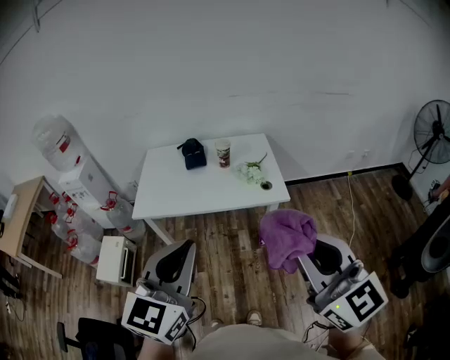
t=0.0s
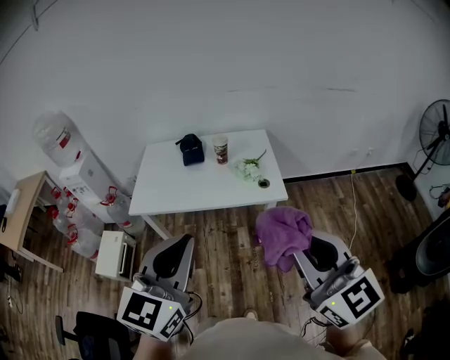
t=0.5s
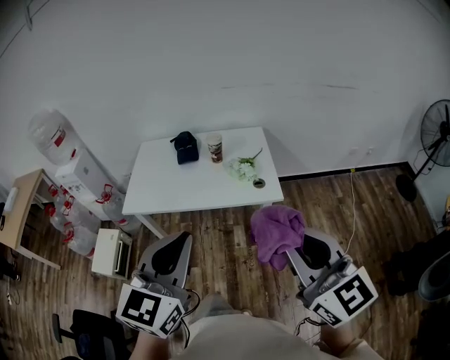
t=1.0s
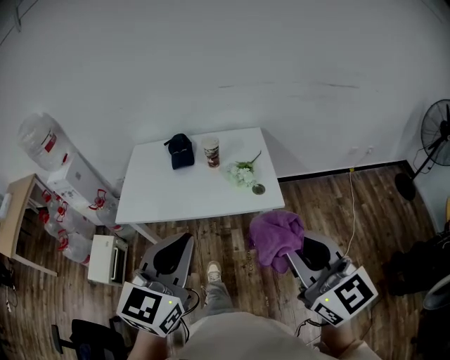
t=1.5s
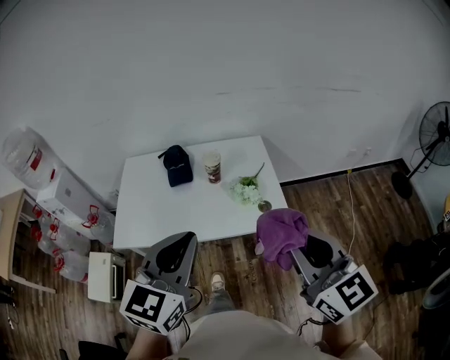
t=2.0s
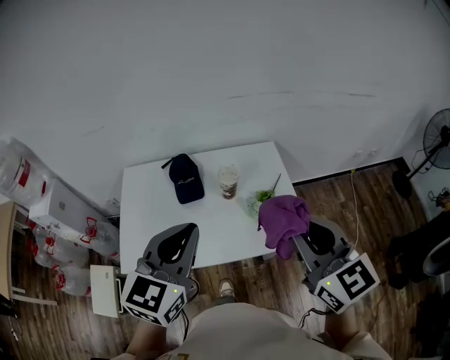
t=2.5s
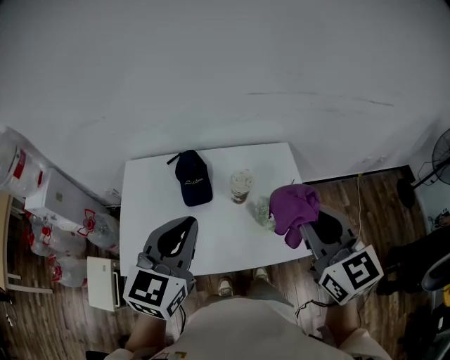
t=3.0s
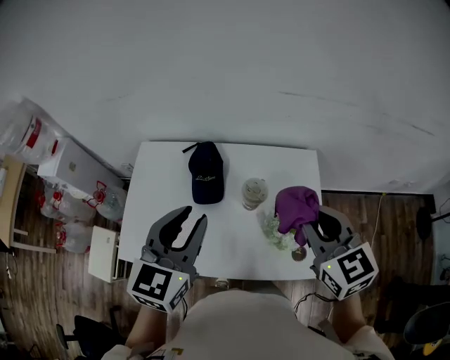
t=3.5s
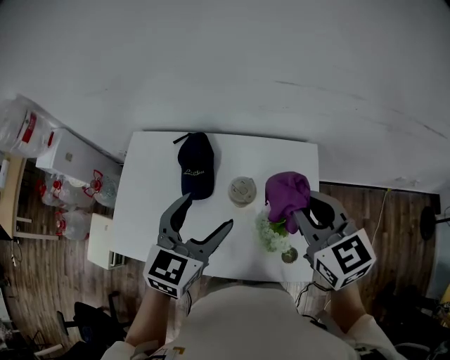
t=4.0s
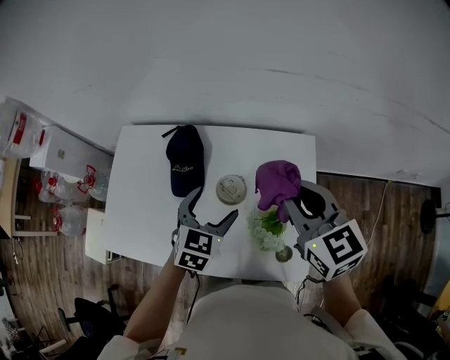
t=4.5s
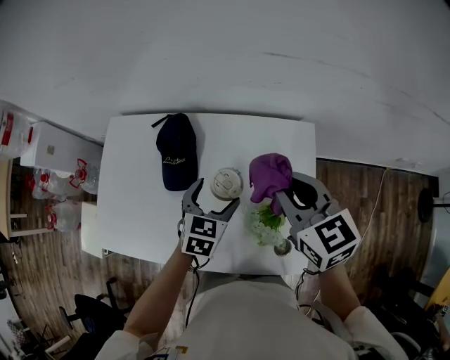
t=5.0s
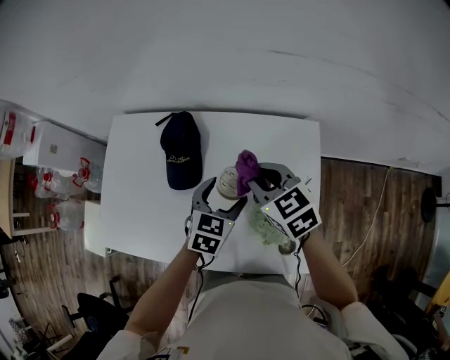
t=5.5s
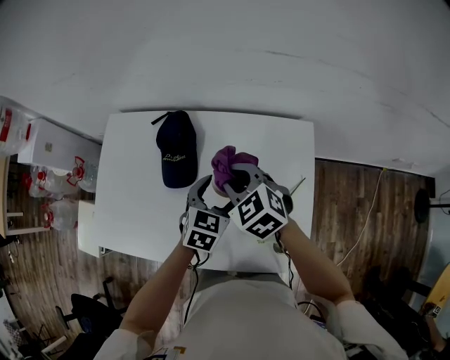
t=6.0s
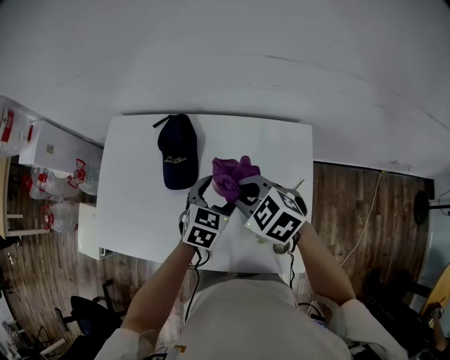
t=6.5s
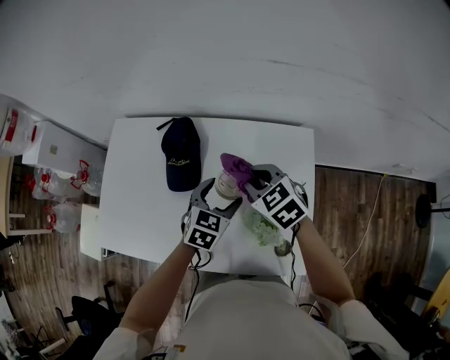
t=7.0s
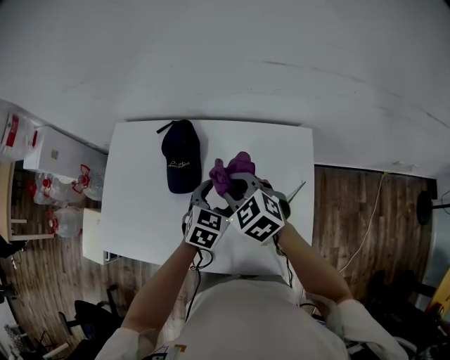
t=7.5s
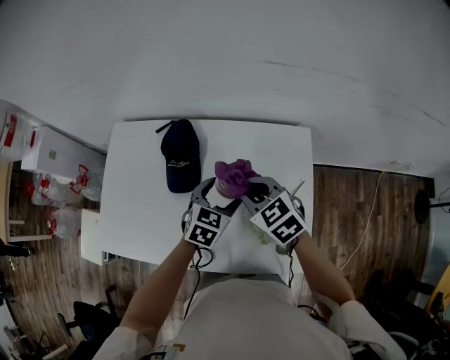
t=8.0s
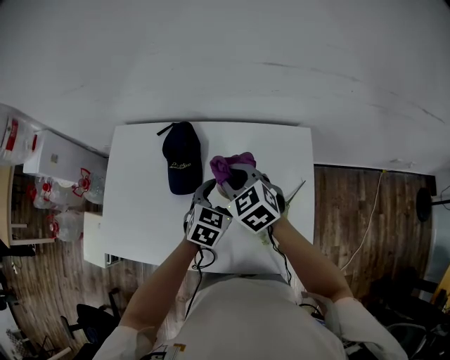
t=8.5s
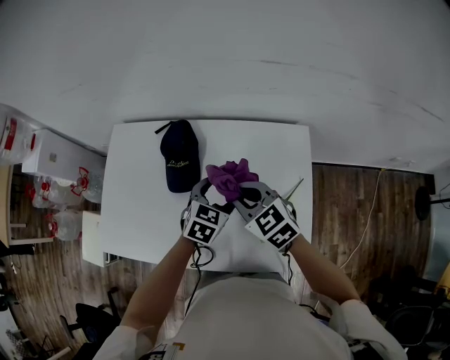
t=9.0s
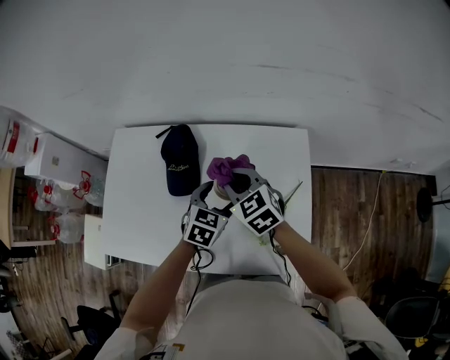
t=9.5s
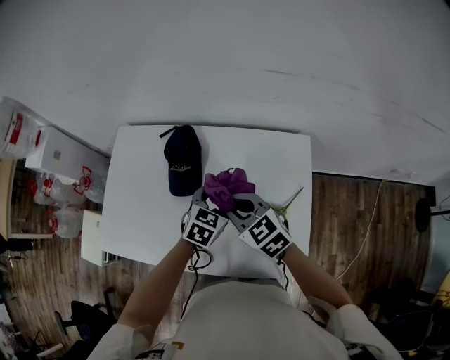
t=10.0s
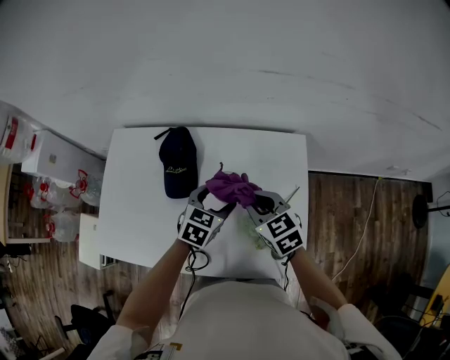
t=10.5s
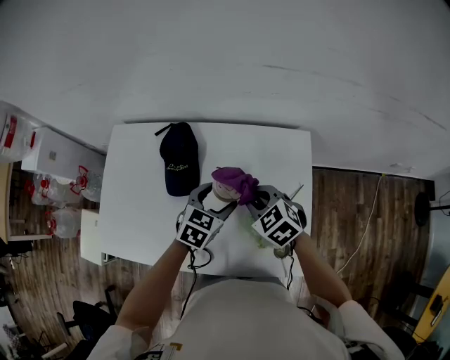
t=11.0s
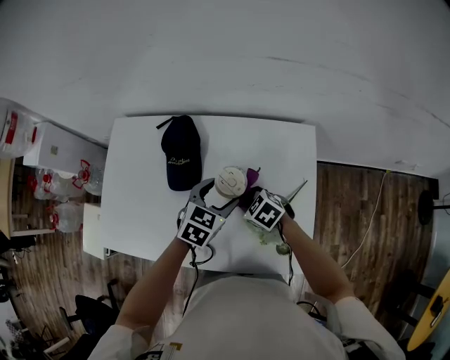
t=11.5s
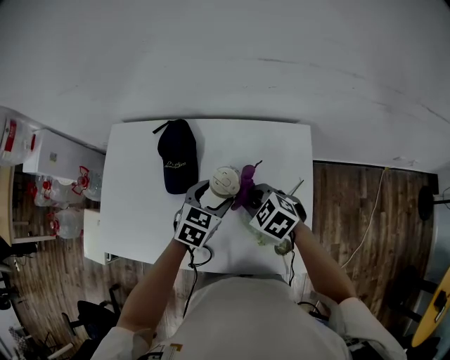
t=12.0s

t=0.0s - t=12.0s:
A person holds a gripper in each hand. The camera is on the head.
t=0.0s - t=2.0s: The two grippers go about 25 cm forward.
t=2.0s - t=4.0s: Both grippers move forward, approximately 40 cm. The right gripper turns by roughly 20 degrees. Meanwhile the left gripper opens.
t=4.0s - t=6.0s: The left gripper moves downward, some 20 cm; the right gripper goes some 20 cm downward, to the left and forward, and changes its angle by some 30 degrees.
t=6.0s - t=8.0s: The right gripper swings left and right, about 5 cm each way, with 2 reversals.
t=8.0s - t=10.0s: The right gripper moves forward and backward over about 10 cm, changing direction 3 times.
t=10.0s - t=12.0s: The right gripper heads downward and to the right, covering approximately 10 cm, and rotates about 20 degrees.

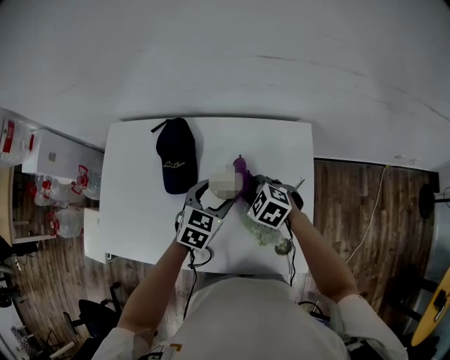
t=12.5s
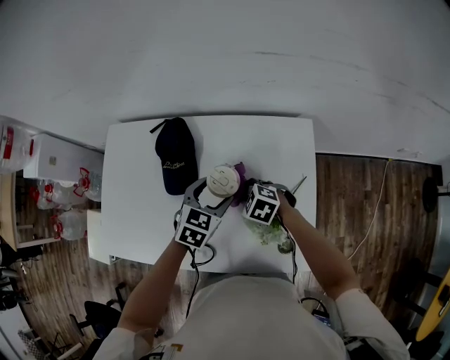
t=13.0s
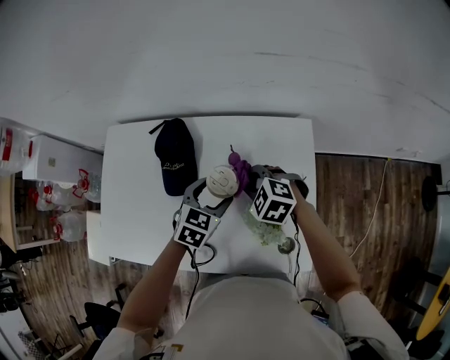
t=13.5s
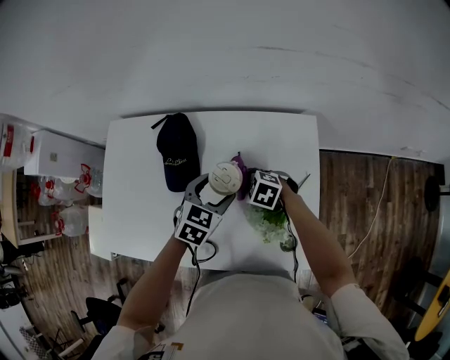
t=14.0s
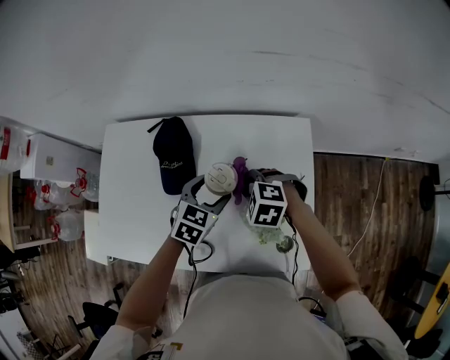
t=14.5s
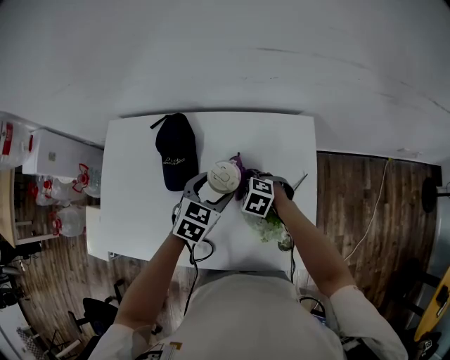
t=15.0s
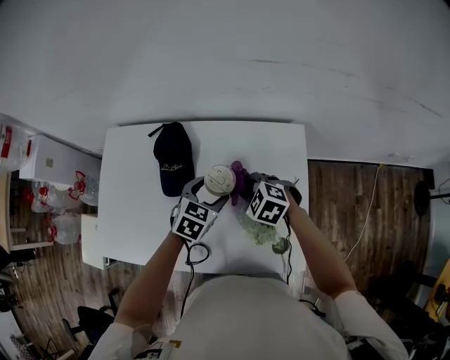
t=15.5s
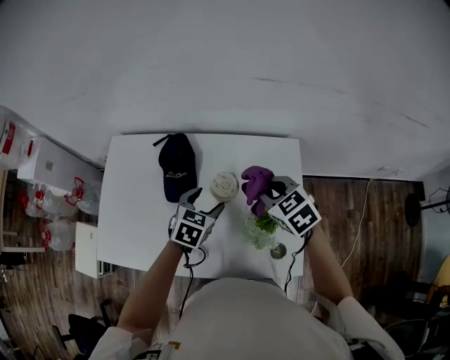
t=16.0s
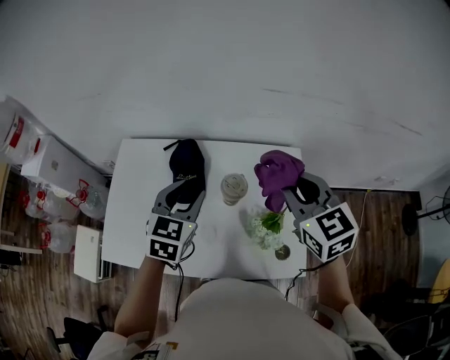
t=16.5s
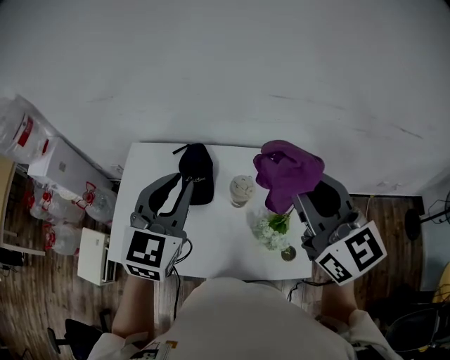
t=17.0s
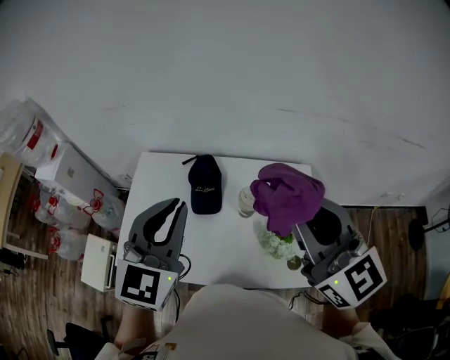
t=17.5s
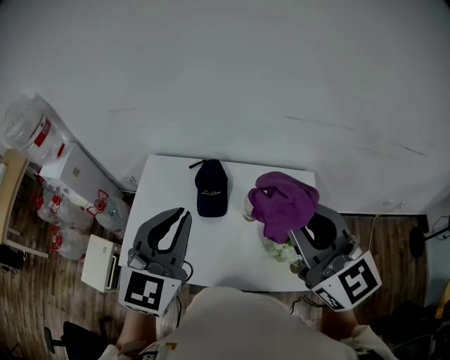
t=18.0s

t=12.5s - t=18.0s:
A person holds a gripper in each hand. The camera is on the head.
t=12.5s - t=14.5s: The right gripper swings up and down, approximately 10 cm each way, with 3 reversals.
t=14.5s - t=16.0s: The right gripper shifts some 10 cm upward, and changes its angle by roughly 40 degrees.
t=16.0s - t=18.0s: The right gripper goes some 35 cm upward and backward, and tips its fingers upward by about 50 degrees, while the left gripper heads upward and to the left, covering roughly 35 cm, angles its fingers upward, by approximately 40 degrees, and closes its fingers.

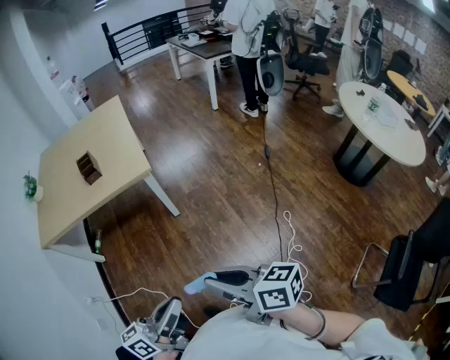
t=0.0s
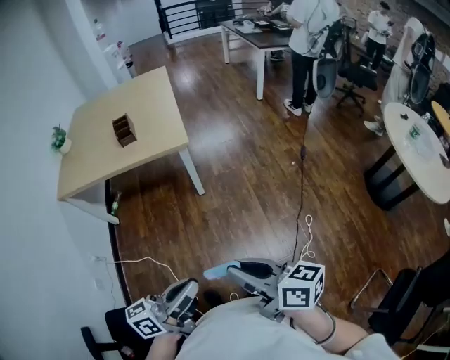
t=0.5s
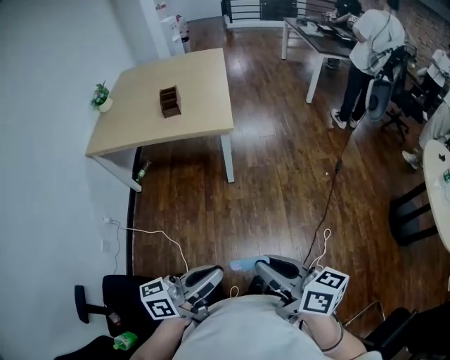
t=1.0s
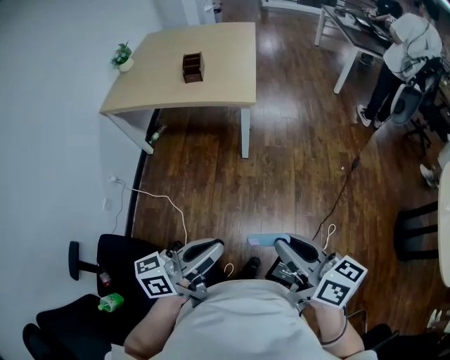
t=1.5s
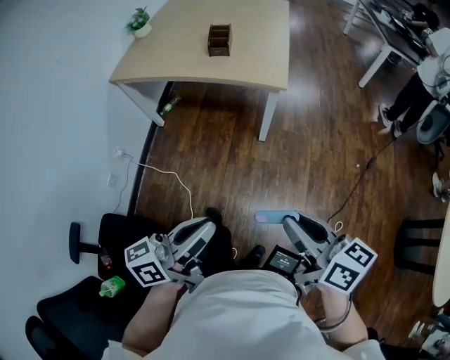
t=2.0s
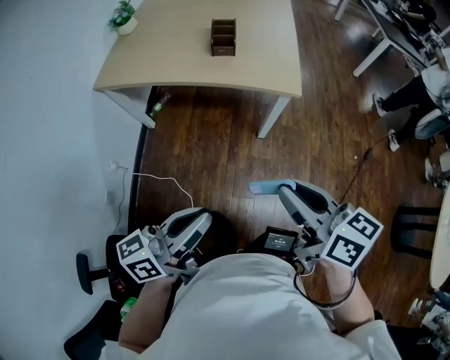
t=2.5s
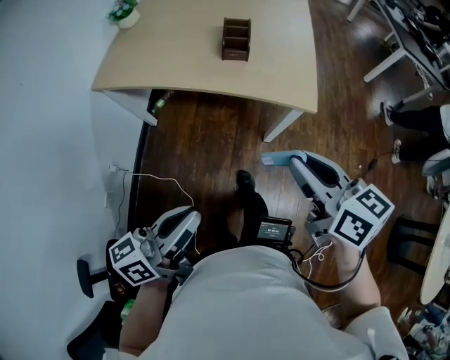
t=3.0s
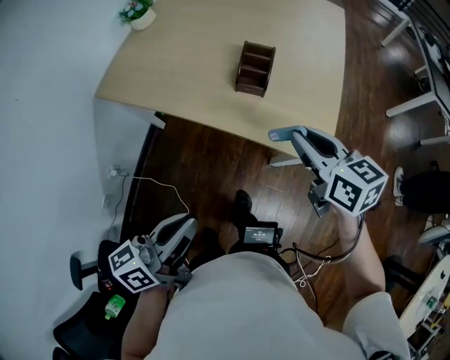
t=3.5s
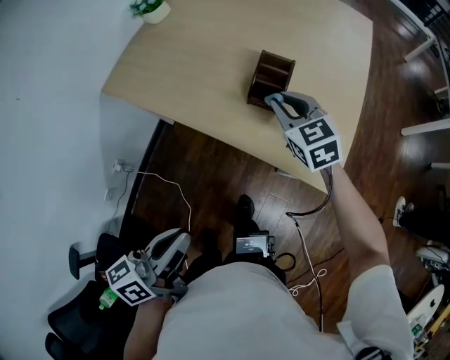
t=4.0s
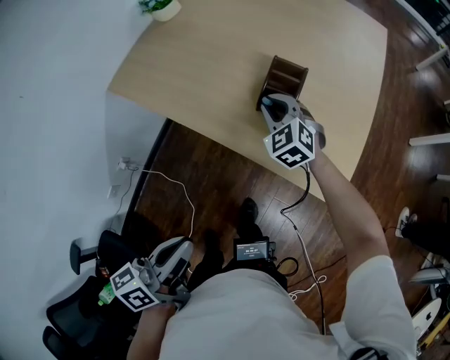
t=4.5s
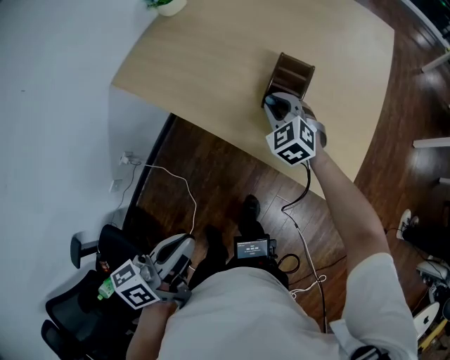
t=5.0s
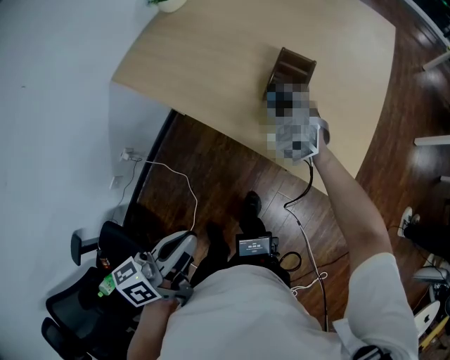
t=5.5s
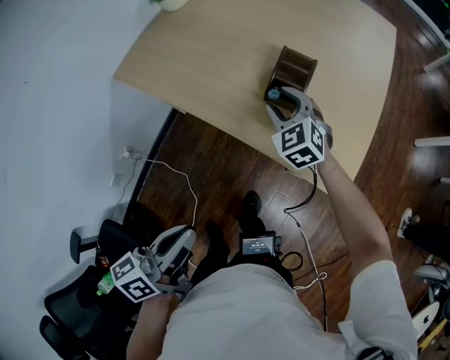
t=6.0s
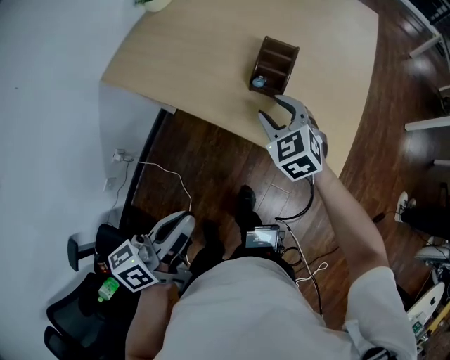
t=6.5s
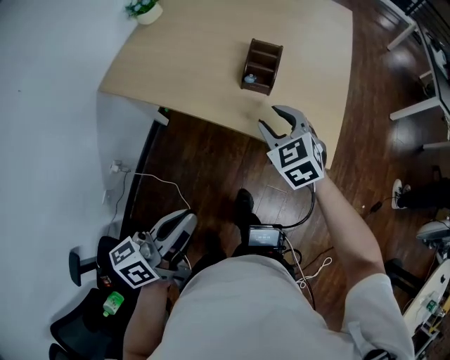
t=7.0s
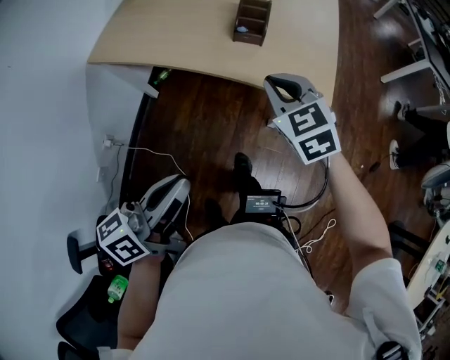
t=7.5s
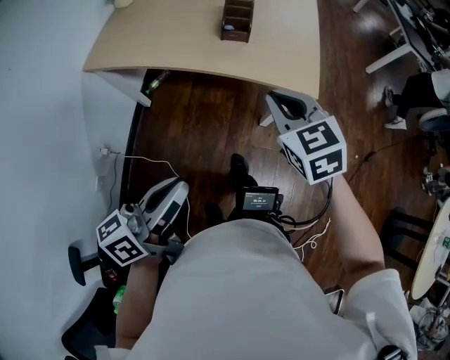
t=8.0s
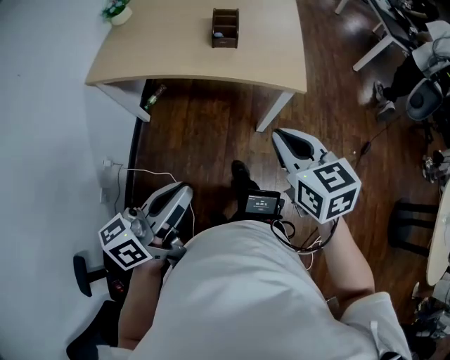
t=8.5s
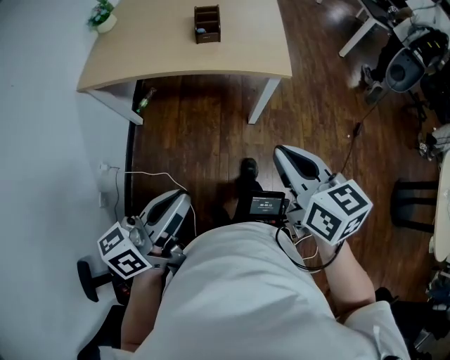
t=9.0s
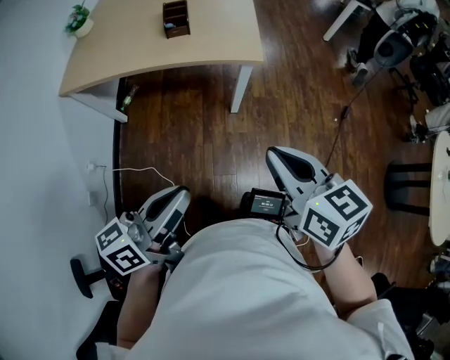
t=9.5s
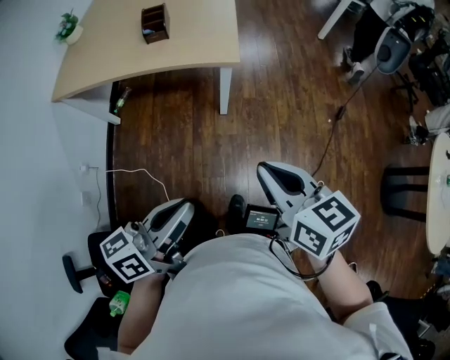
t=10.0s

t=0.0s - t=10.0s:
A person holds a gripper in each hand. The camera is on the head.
t=0.0s - t=2.0s: The right gripper heads forward, covering about 10 cm, while the left gripper travels forward and to the left by roughly 10 cm, and turns by some 20 degrees.
t=2.0s - t=4.0s: Both grippers are carried forward, approximately 60 cm. The left gripper rotates some 30 degrees. Meanwhile the right gripper rolls counterclockwise, seen from behind, by roughly 50 degrees.
t=4.0s - t=6.0s: The right gripper shifts roughly 5 cm downward, changes its angle by approximately 20 degrees, and opens up.
t=6.0s - t=8.0s: The left gripper is displaced backward by some 15 cm, and rotates approximately 20 degrees; the right gripper heads backward and upward, covering approximately 35 cm, rotates some 30 degrees, and closes.
t=8.0s - t=10.0s: The left gripper travels to the right and backward by roughly 25 cm. The right gripper is displaced backward and to the right by roughly 35 cm, and changes its angle by approximately 40 degrees.
